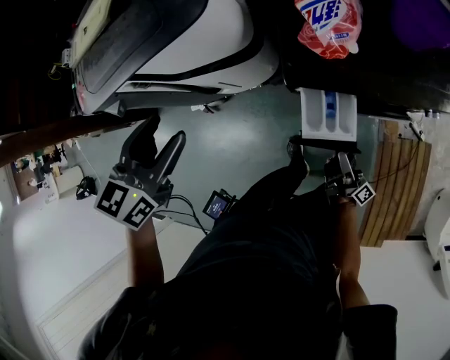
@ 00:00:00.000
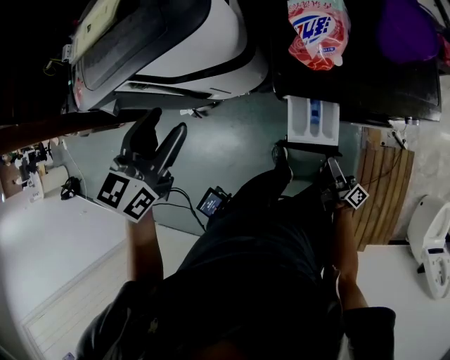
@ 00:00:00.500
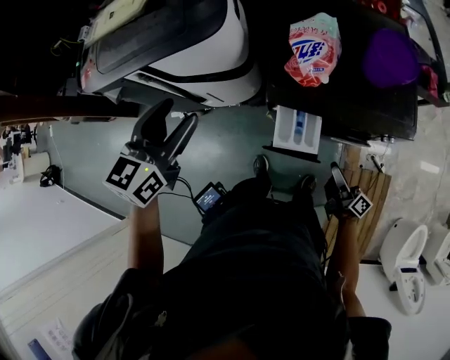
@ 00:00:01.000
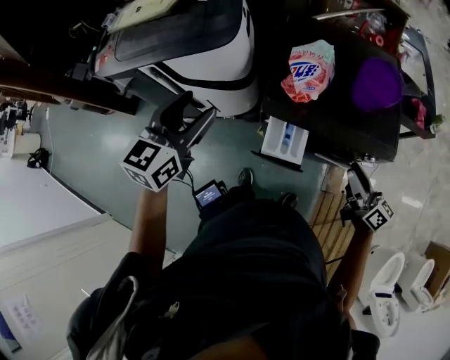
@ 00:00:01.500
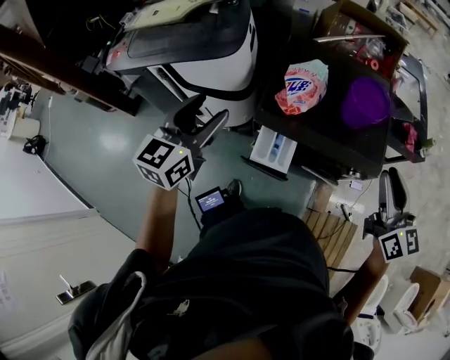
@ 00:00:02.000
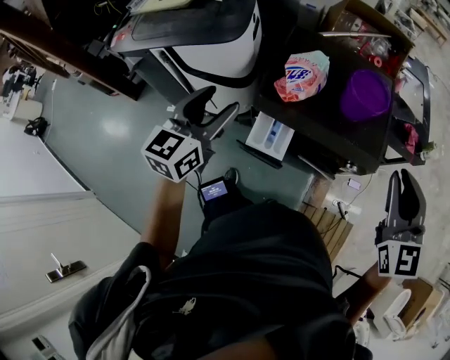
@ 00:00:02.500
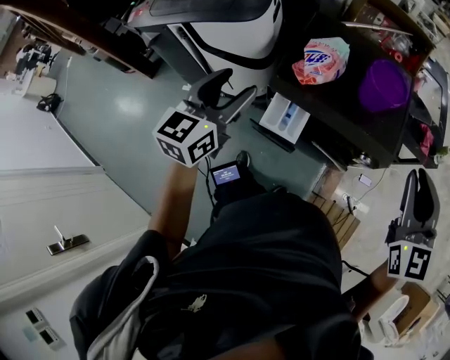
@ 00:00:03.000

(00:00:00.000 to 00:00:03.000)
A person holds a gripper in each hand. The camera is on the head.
00:00:00.000 - 00:00:01.500: The right gripper is displaced upward and to the right by some 30 cm, and turns by some 50 degrees, while the left gripper moves upward and to the right, some 10 cm, and rotates about 20 degrees.
00:00:01.500 - 00:00:03.000: The right gripper travels upward by roughly 25 cm, rolls counterclockwise, seen from behind, by some 60 degrees, and closes up; the left gripper is displaced to the right and backward by roughly 10 cm.

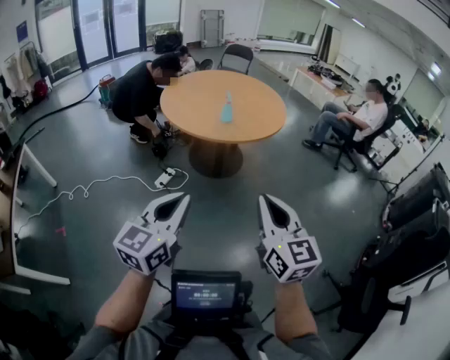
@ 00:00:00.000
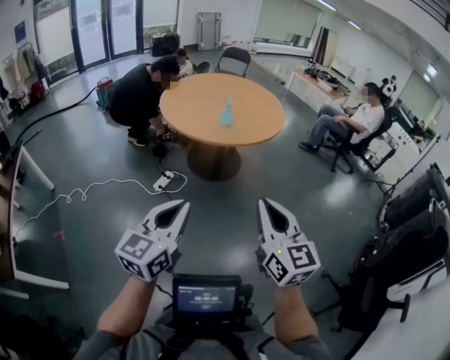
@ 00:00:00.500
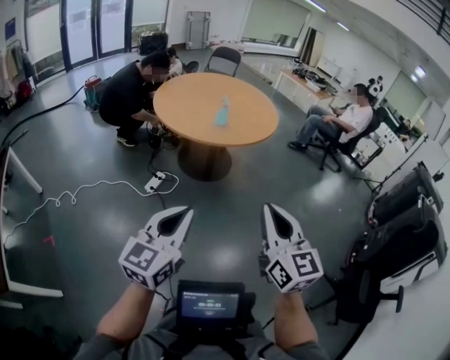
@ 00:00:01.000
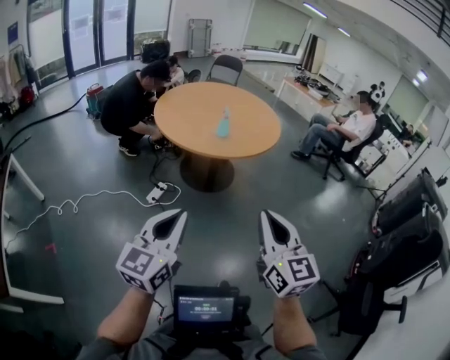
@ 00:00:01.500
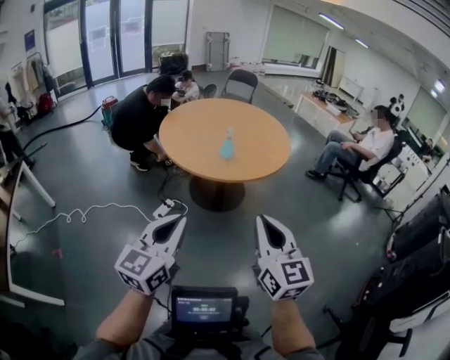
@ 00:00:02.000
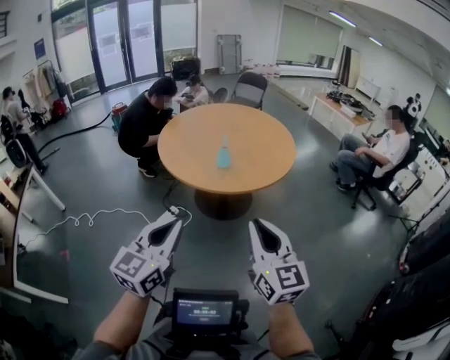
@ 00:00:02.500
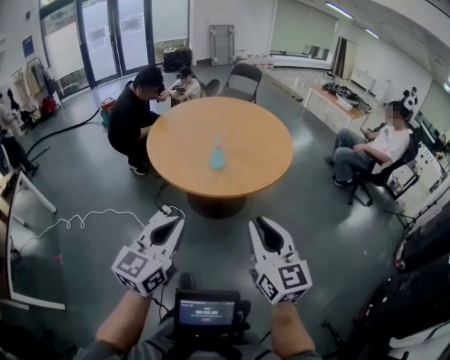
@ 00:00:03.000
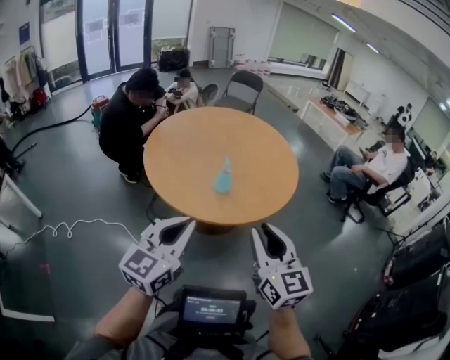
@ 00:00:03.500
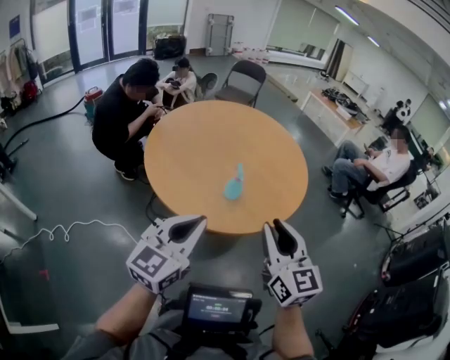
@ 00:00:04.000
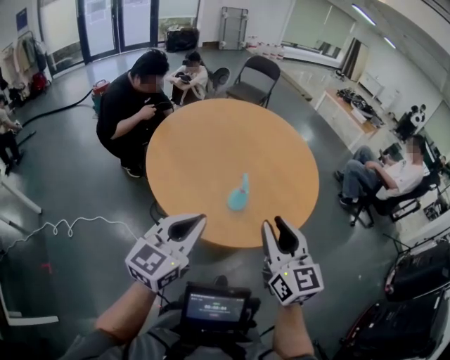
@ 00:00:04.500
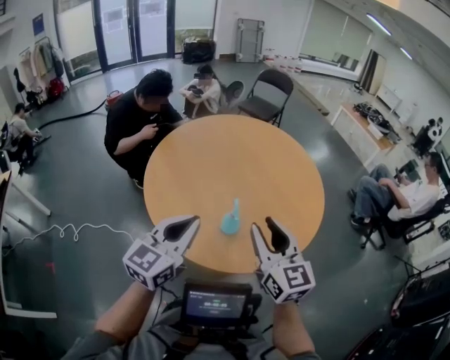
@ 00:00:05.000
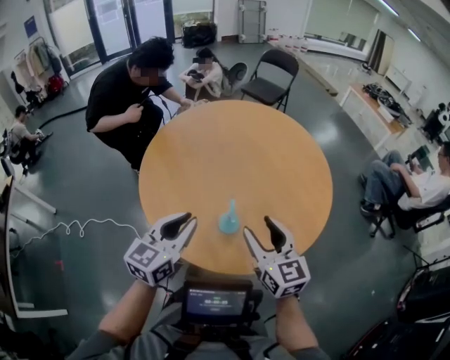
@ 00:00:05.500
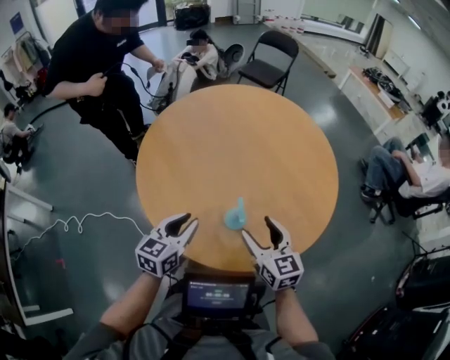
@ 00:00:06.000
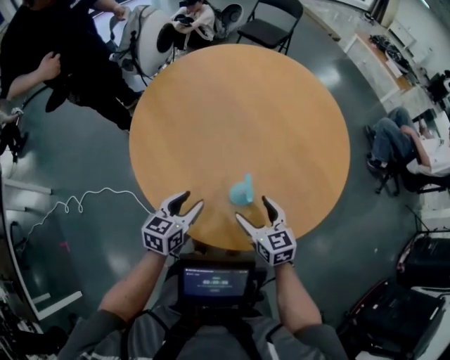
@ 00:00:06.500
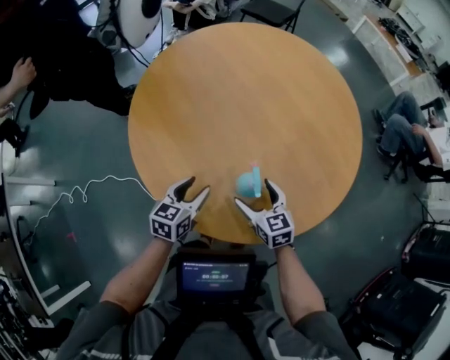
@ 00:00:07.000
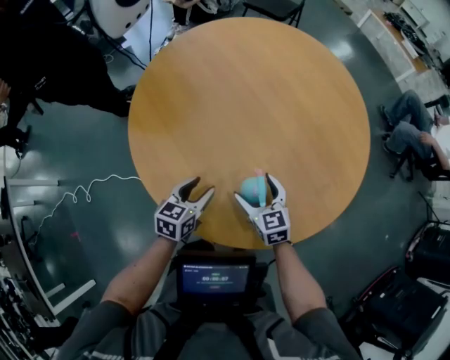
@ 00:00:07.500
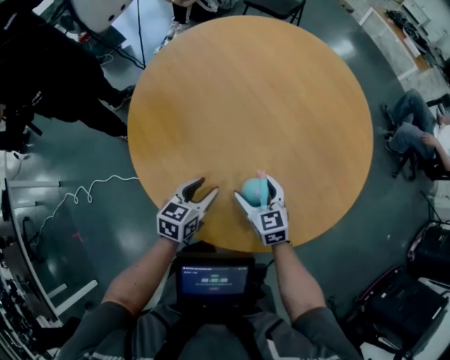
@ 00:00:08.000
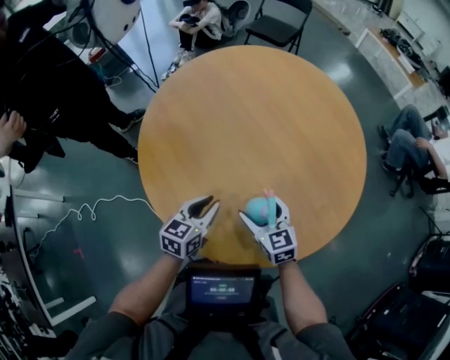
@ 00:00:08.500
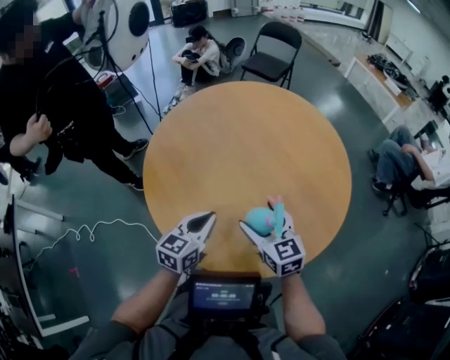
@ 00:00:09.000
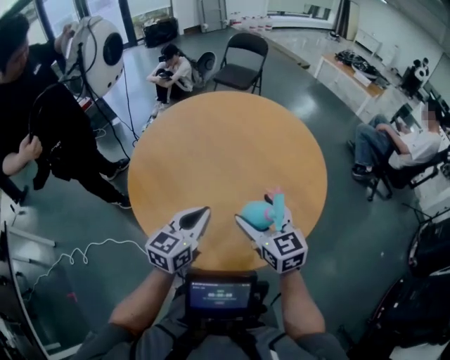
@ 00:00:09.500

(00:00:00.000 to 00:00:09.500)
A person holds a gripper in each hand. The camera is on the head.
00:00:00.000 - 00:00:02.000: The grippers both shift forward by some 10 cm.
00:00:02.000 - 00:00:04.000: The grippers both shift forward by about 35 cm.
00:00:04.000 - 00:00:05.500: The two grippers go some 20 cm forward.
00:00:05.500 - 00:00:07.500: The two grippers go about 25 cm downward. The right gripper changes its angle by approximately 20 degrees, and opens; the left gripper swivels roughly 30 degrees, and opens up.
00:00:07.500 - 00:00:09.500: The two grippers go roughly 20 cm upward. The left gripper turns by roughly 20 degrees, and closes.

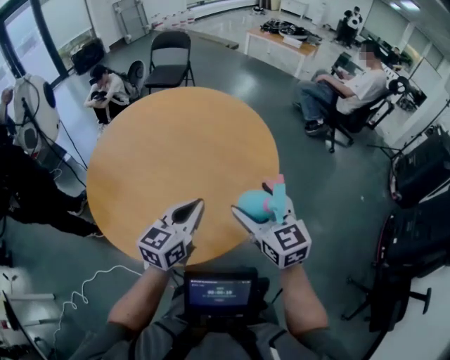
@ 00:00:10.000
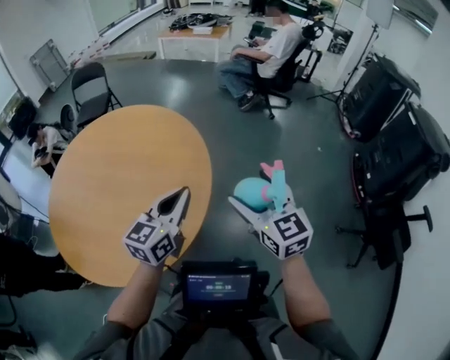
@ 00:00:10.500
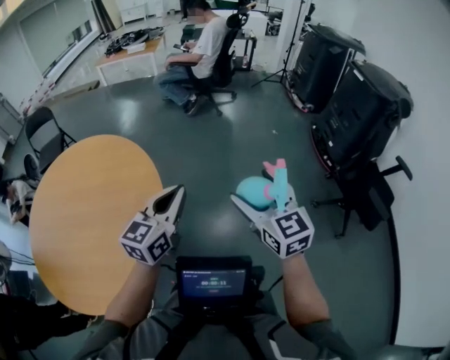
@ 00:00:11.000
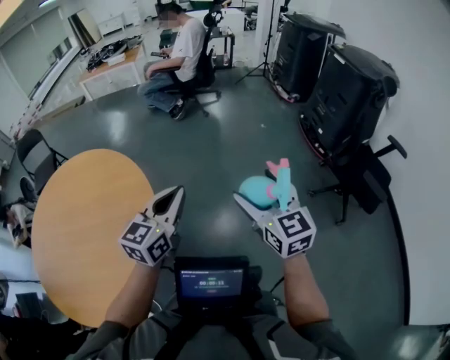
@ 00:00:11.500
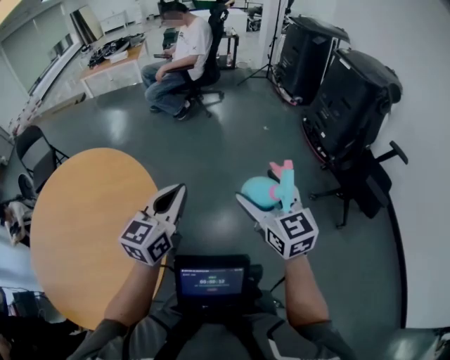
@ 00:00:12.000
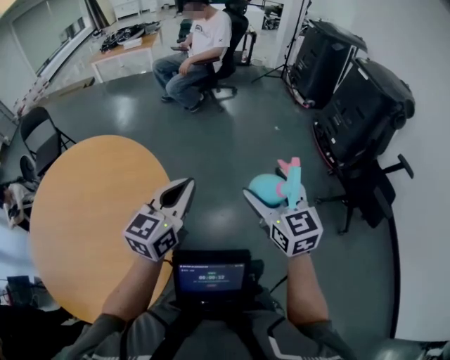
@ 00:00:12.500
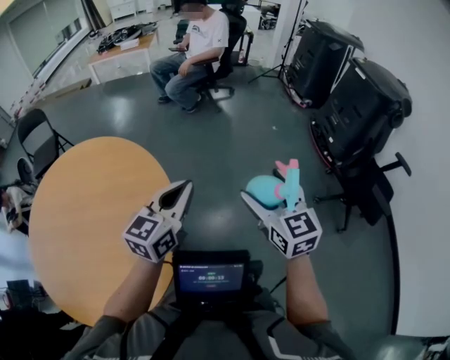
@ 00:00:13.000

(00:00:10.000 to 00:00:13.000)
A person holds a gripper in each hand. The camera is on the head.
00:00:10.000 - 00:00:11.500: The left gripper changes place by roughly 35 cm, and turns by some 40 degrees; the right gripper moves roughly 40 cm, and turns by about 50 degrees.
00:00:11.500 - 00:00:13.000: Both grippers move to the left, approximately 10 cm.

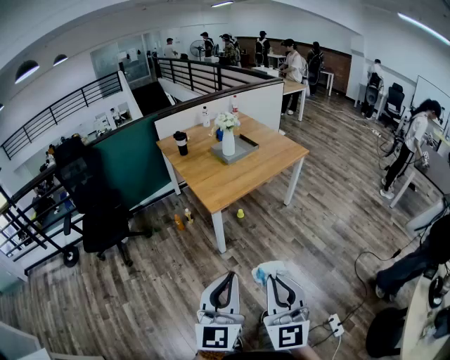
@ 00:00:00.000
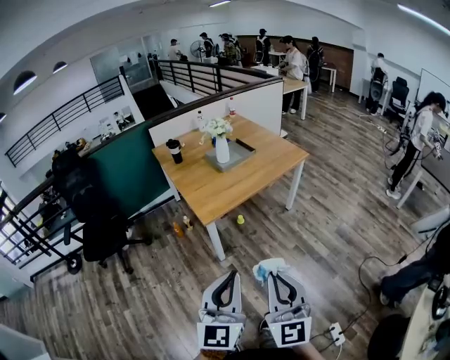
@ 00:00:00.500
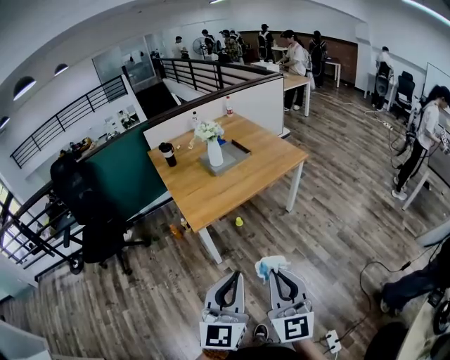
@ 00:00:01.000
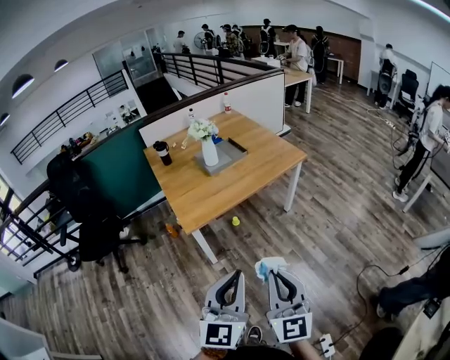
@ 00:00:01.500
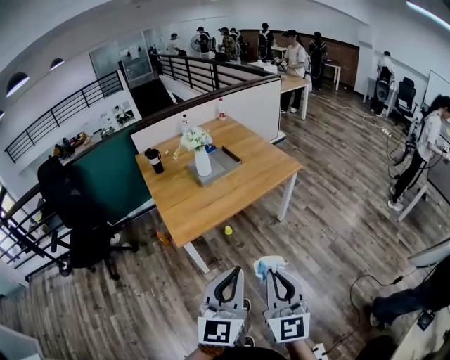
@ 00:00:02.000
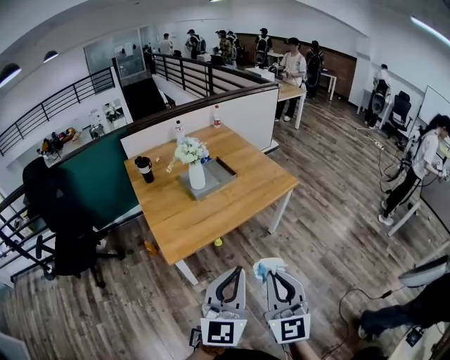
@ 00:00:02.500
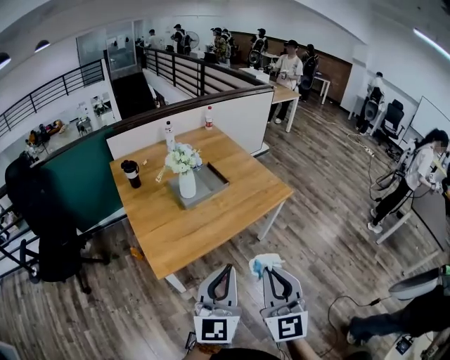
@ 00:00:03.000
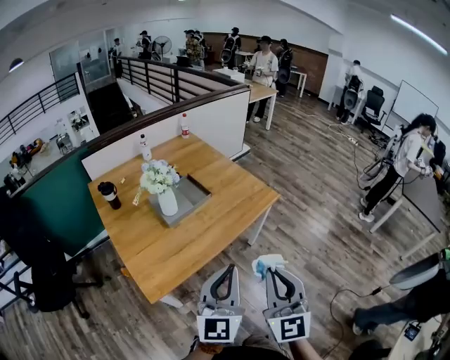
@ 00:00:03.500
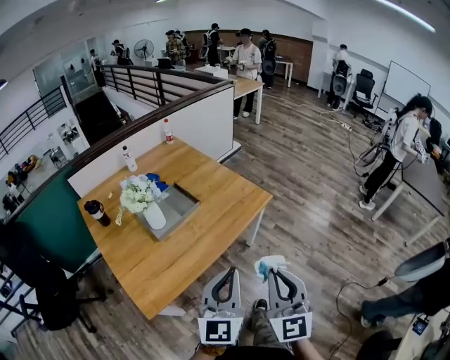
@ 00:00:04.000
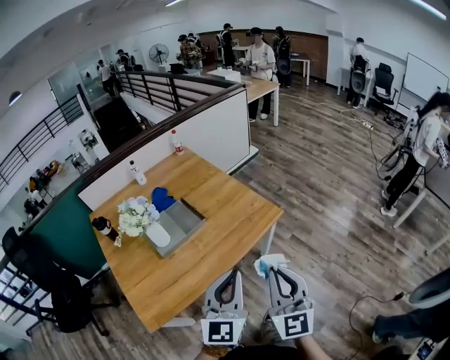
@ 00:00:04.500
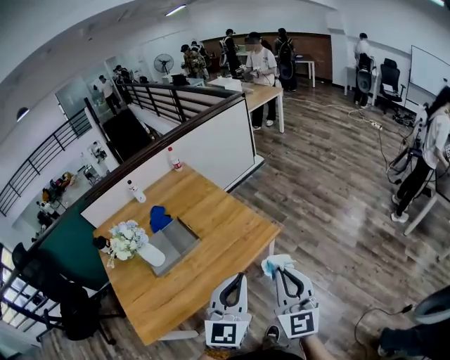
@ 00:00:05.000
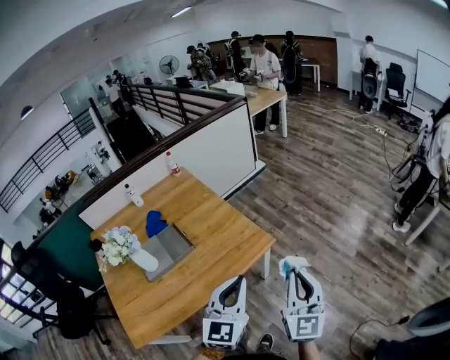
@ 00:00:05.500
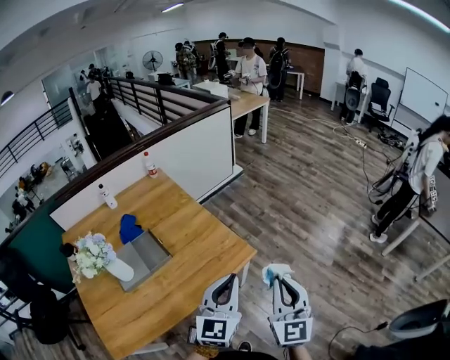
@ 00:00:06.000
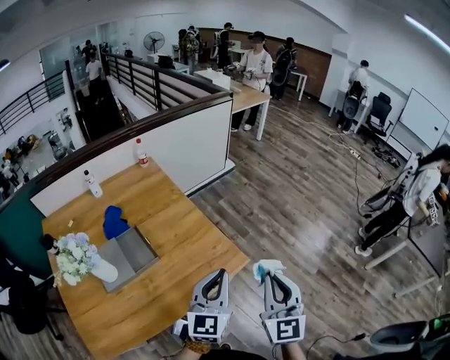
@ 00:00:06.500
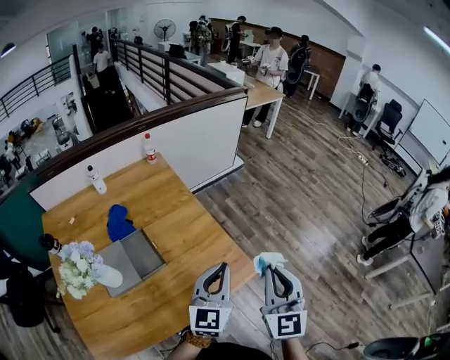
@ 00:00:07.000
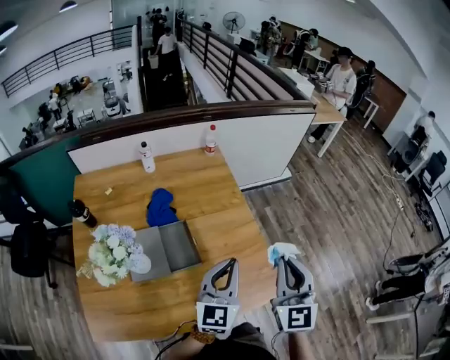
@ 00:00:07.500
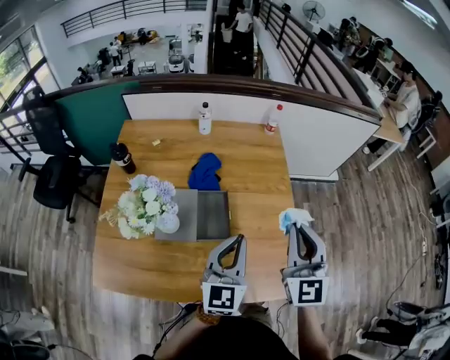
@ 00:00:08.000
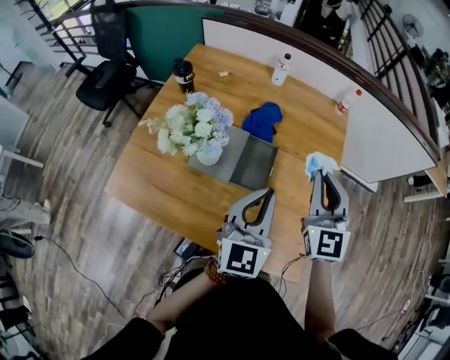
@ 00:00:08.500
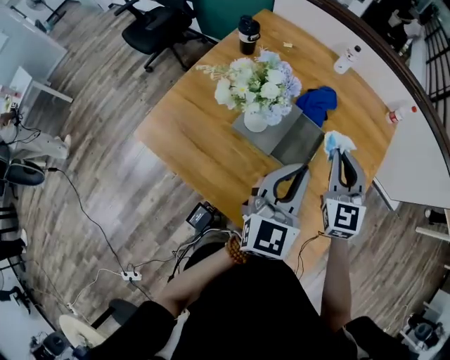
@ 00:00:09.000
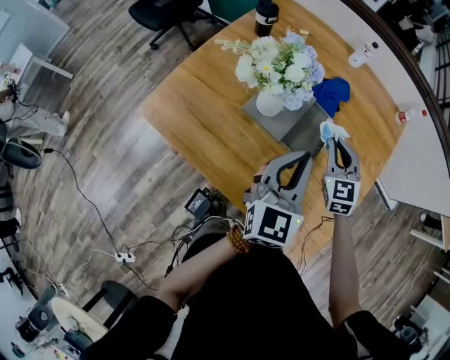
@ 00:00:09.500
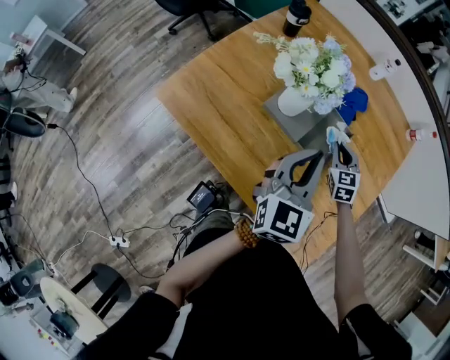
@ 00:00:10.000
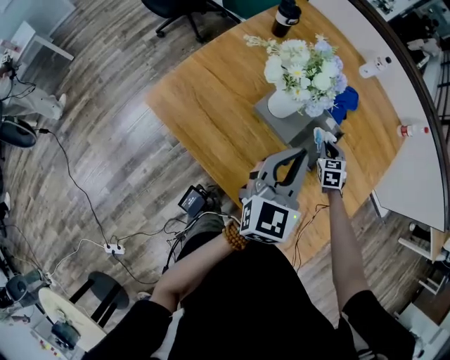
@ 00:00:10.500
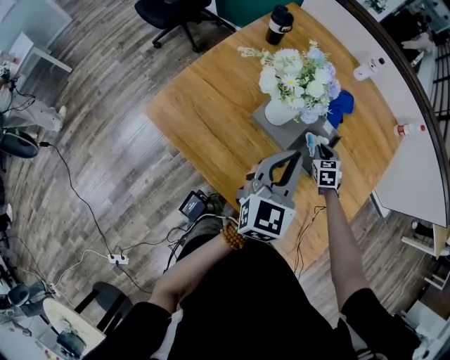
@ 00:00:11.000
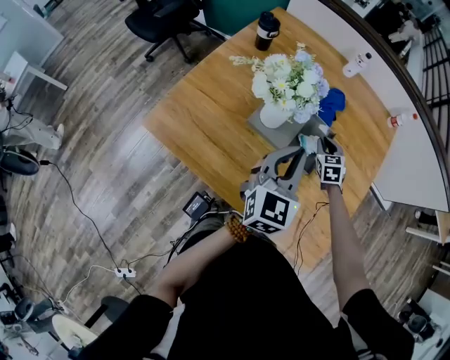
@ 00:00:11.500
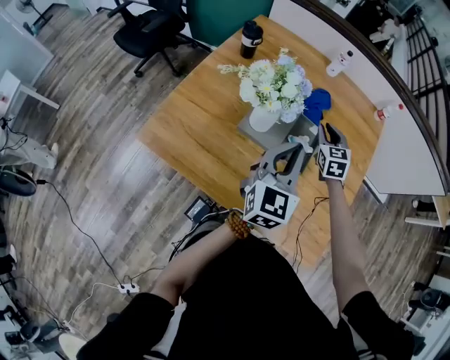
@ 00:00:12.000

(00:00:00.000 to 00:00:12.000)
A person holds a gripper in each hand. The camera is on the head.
00:00:00.000 - 00:00:02.000: Both grippers travel together forward and to the right, about 35 cm.
00:00:02.000 - 00:00:04.000: Both grippers move forward, some 30 cm.
00:00:04.000 - 00:00:06.000: Both grippers move forward and to the right, some 35 cm.
00:00:06.000 - 00:00:08.000: The left gripper moves about 35 cm, and turns by approximately 40 degrees. The right gripper moves approximately 50 cm, and rotates about 40 degrees.
00:00:08.000 - 00:00:10.000: The left gripper moves approximately 15 cm, and rotates approximately 30 degrees; the right gripper shifts roughly 30 cm downward, and tips its fingers downward by about 30 degrees.
00:00:10.000 - 00:00:12.000: The right gripper shifts approximately 10 cm upward.
